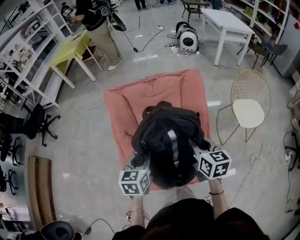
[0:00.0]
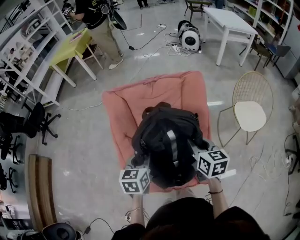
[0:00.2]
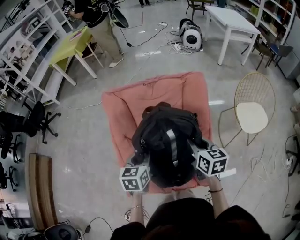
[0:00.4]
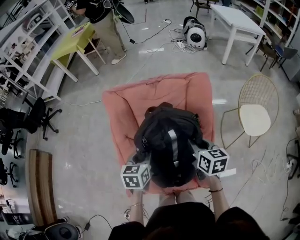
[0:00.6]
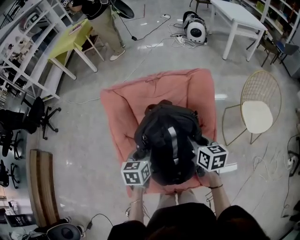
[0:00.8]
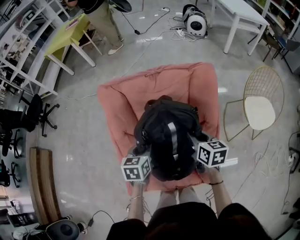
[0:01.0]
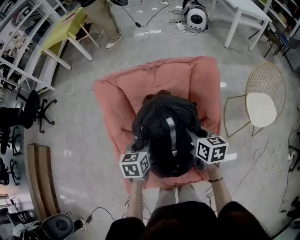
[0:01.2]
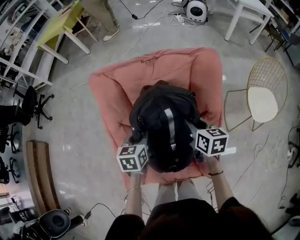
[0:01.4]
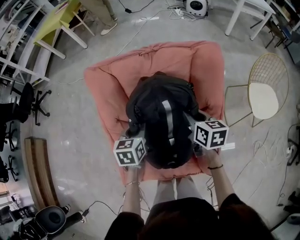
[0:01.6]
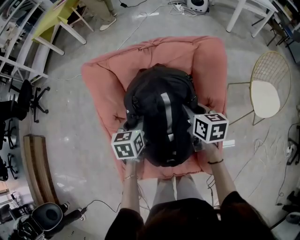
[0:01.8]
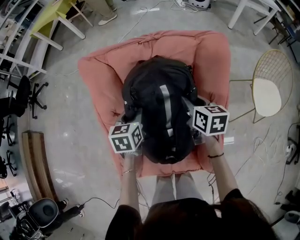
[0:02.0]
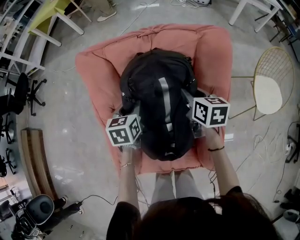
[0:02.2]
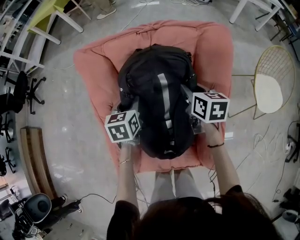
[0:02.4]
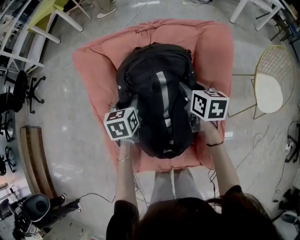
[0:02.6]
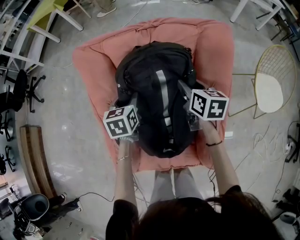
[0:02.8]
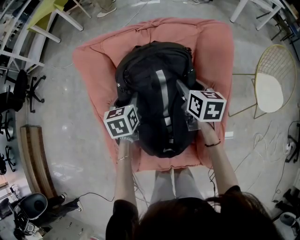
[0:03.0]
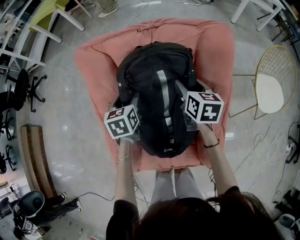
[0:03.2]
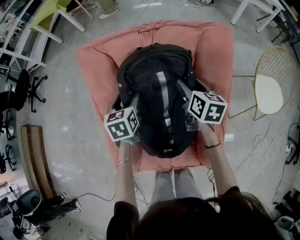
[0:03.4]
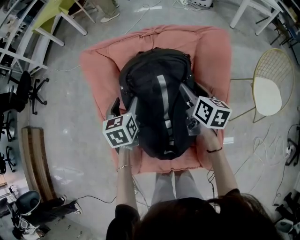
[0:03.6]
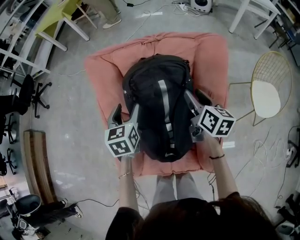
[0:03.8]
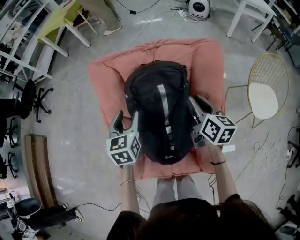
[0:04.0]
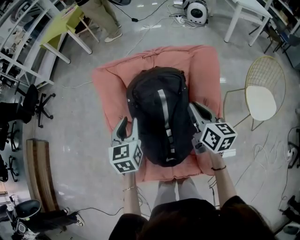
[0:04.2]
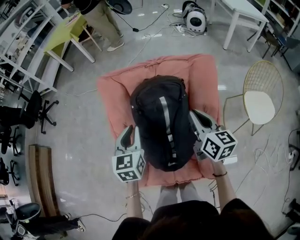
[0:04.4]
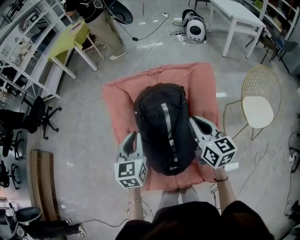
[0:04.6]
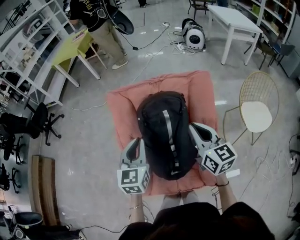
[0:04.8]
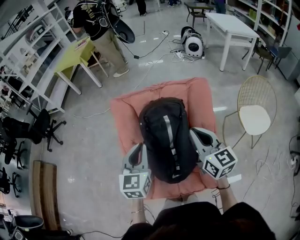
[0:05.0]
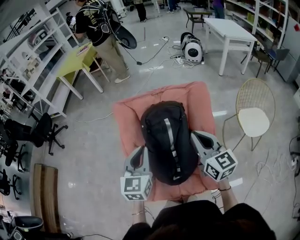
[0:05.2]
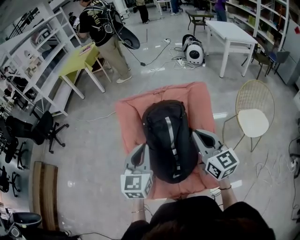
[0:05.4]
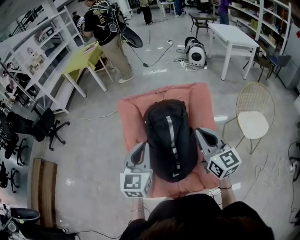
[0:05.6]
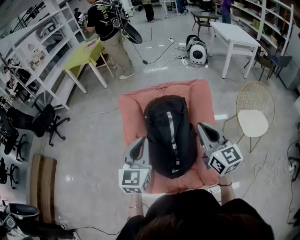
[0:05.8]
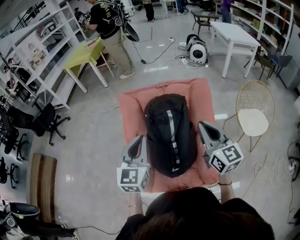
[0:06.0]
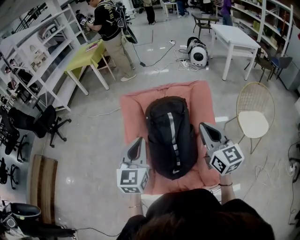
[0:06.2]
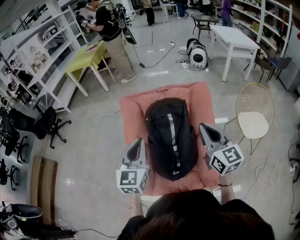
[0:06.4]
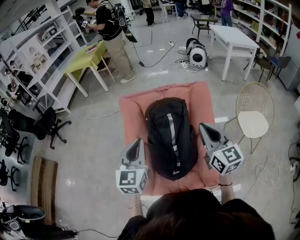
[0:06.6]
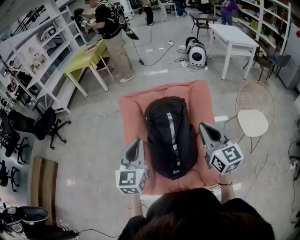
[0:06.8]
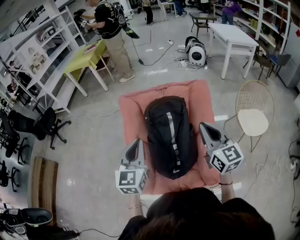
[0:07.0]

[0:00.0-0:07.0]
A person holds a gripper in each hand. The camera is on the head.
0:00.0 to 0:01.4: The two grippers go some 20 cm forward and downward.
0:01.4 to 0:02.8: Both grippers travel together forward, roughly 10 cm.
0:02.8 to 0:04.2: Both grippers move upward and backward, about 15 cm. The right gripper opens and closes again; the left gripper opens, then closes again.
0:04.2 to 0:05.6: The two grippers go about 20 cm upward and backward. The left gripper swivels approximately 20 degrees, and closes its fingers, while the right gripper swivels approximately 30 degrees.
0:05.6 to 0:07.0: The grippers stay close to where they were, moving slightly.

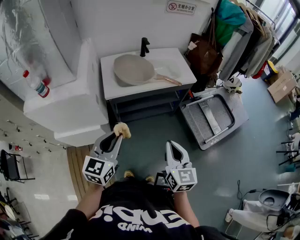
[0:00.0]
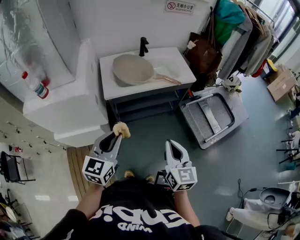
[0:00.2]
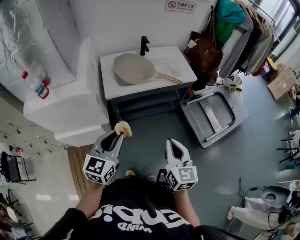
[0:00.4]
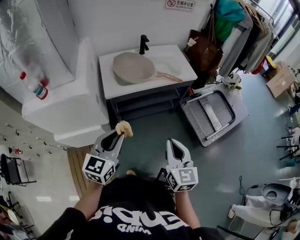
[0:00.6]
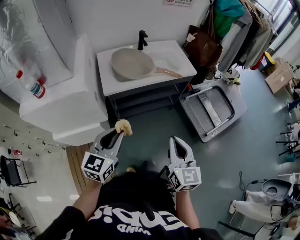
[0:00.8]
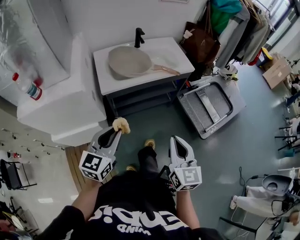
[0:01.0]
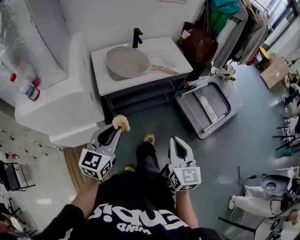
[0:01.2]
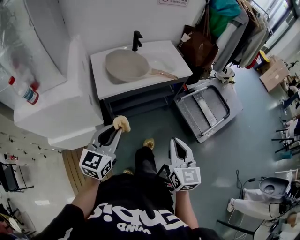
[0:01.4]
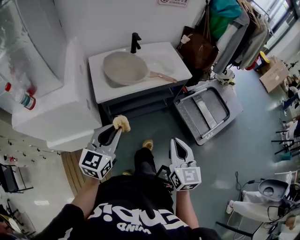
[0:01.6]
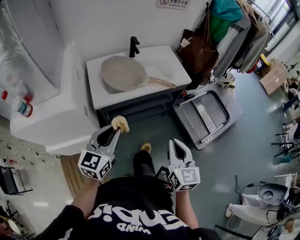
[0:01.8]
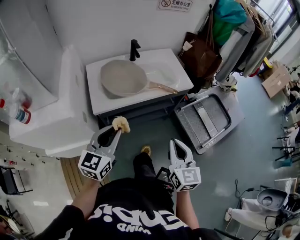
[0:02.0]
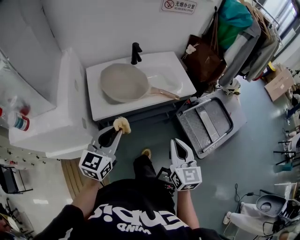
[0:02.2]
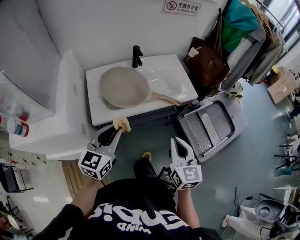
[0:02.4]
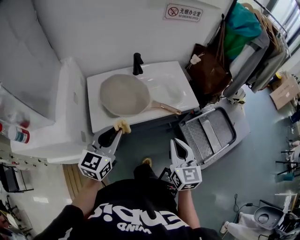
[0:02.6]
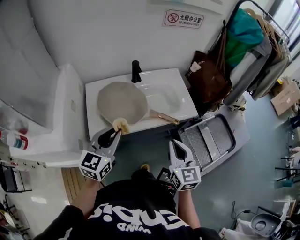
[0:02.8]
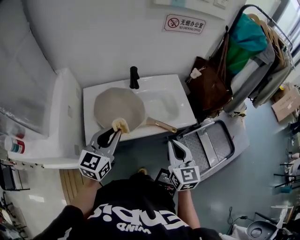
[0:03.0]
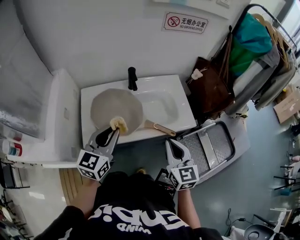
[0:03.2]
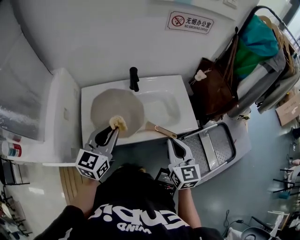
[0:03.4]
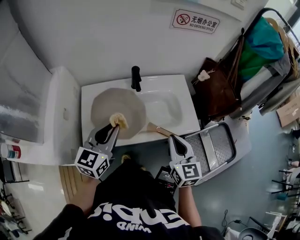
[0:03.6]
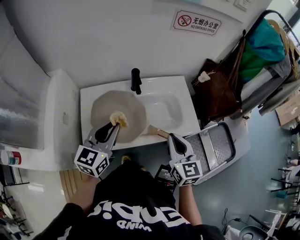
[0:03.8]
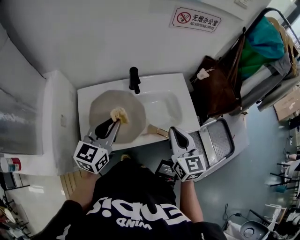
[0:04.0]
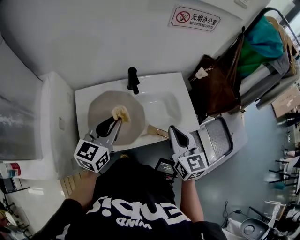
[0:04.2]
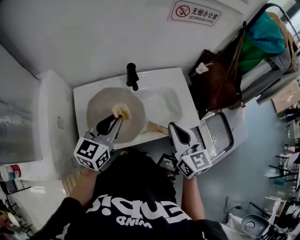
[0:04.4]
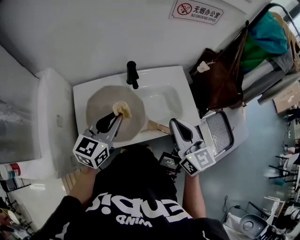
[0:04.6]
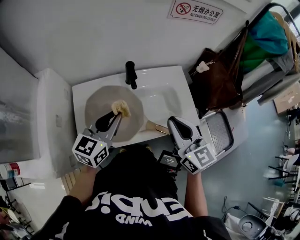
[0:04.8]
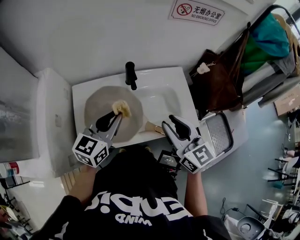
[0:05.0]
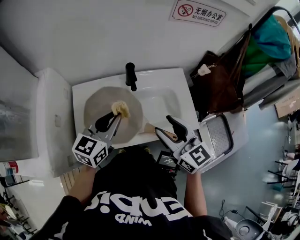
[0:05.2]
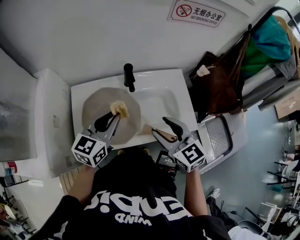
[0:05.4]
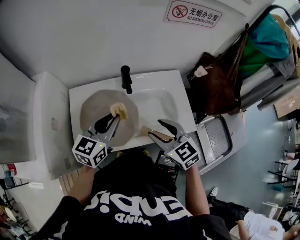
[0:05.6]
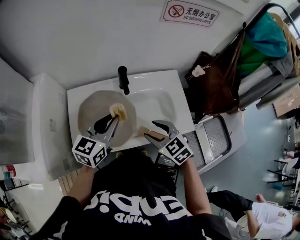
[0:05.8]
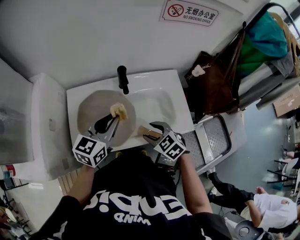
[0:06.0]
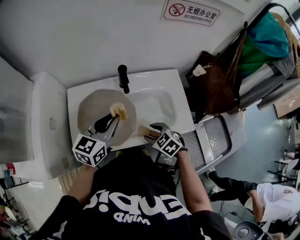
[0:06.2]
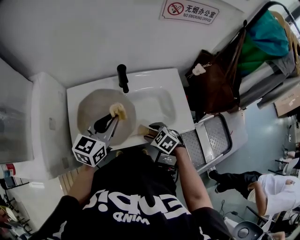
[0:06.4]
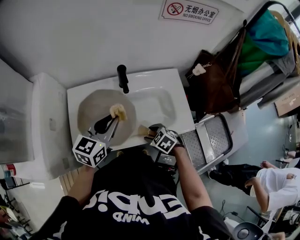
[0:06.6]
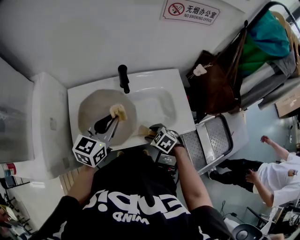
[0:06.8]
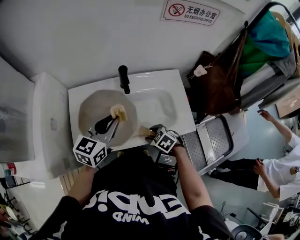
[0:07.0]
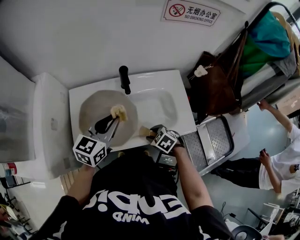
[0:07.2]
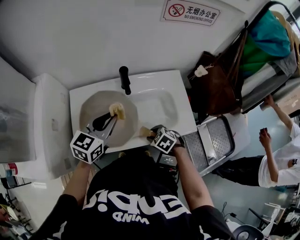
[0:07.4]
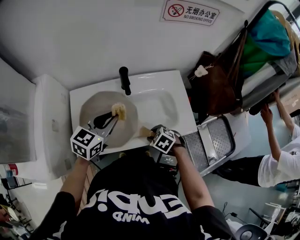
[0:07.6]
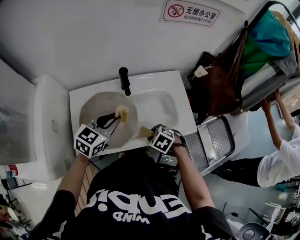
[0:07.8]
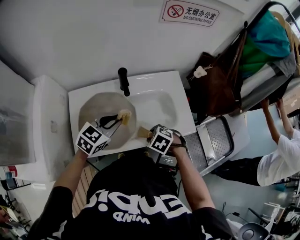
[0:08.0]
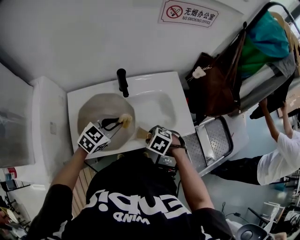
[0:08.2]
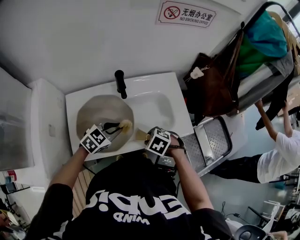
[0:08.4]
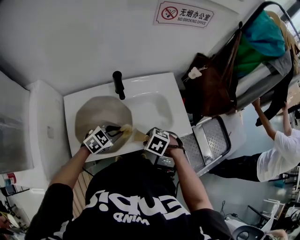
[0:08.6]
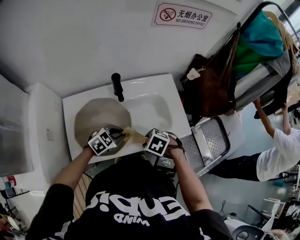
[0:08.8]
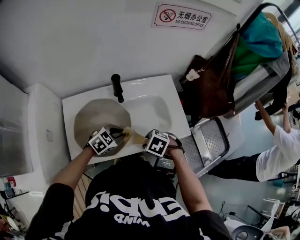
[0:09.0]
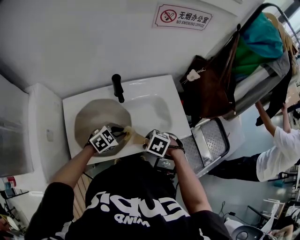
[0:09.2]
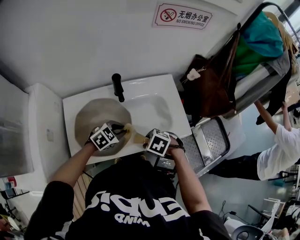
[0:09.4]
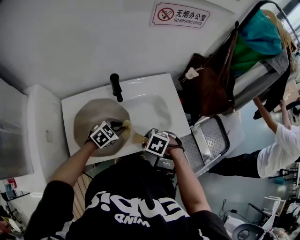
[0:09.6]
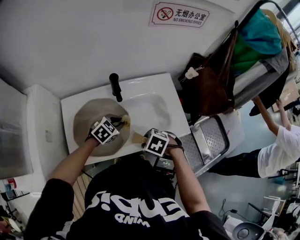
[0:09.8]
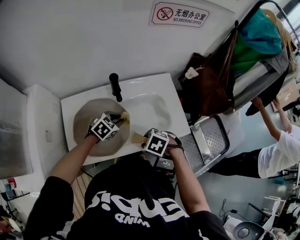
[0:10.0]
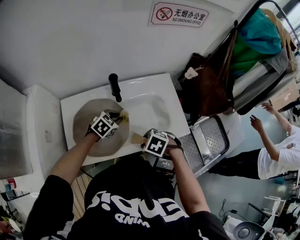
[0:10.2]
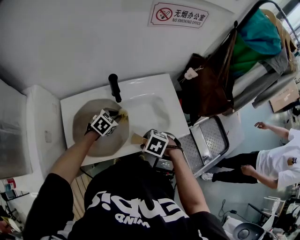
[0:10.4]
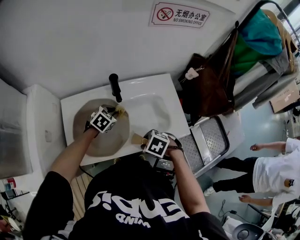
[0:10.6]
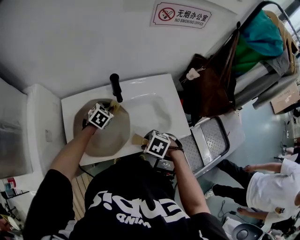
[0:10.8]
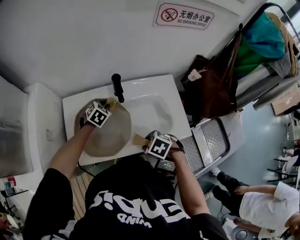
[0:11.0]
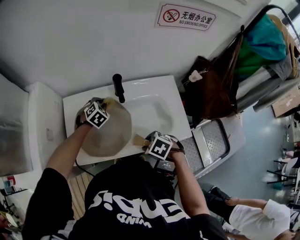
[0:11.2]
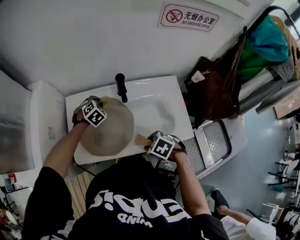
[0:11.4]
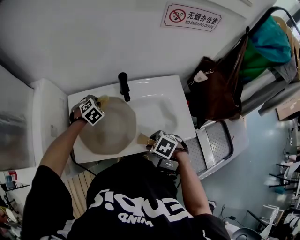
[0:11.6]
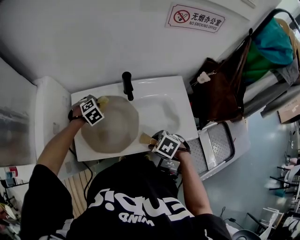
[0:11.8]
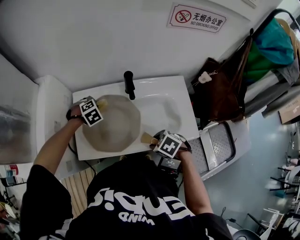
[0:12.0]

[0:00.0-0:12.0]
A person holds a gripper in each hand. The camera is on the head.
0:00.0 to 0:01.6: The left gripper goes approximately 5 cm forward.
0:01.6 to 0:03.0: The grippers both shift forward by approximately 30 cm.
0:03.0 to 0:04.4: Both grippers move forward, roughly 15 cm.
0:04.4 to 0:06.0: The left gripper ends up about 5 cm from where it was; the right gripper goes approximately 20 cm downward, tips its fingers downward by approximately 40 degrees, and opens.
0:06.0 to 0:07.6: The right gripper travels downward by about 10 cm, and swivels roughly 20 degrees.
0:07.6 to 0:09.0: The left gripper is displaced downward by roughly 15 cm, and turns by approximately 40 degrees.
0:09.0 to 0:10.4: The left gripper ends up roughly 10 cm from where it was.
0:10.4 to 0:12.0: The left gripper changes place by roughly 20 cm, and changes its angle by roughly 30 degrees.

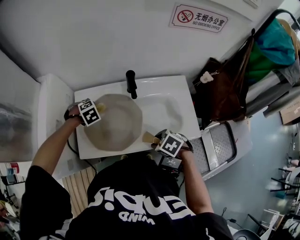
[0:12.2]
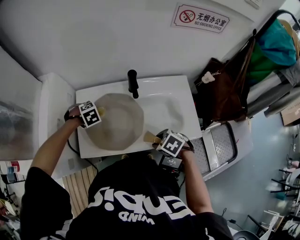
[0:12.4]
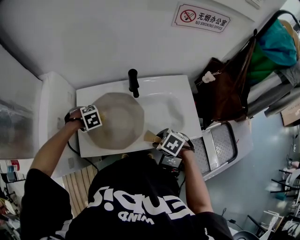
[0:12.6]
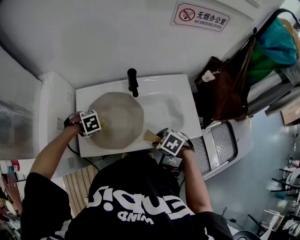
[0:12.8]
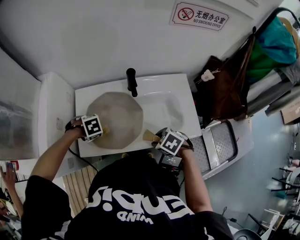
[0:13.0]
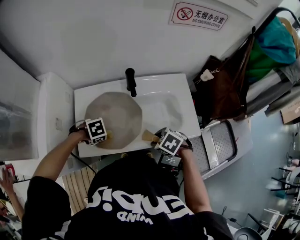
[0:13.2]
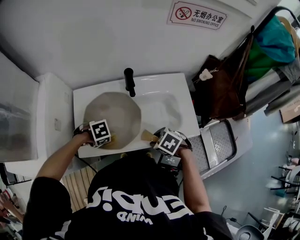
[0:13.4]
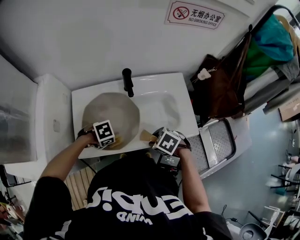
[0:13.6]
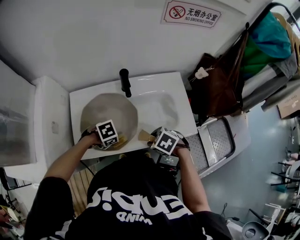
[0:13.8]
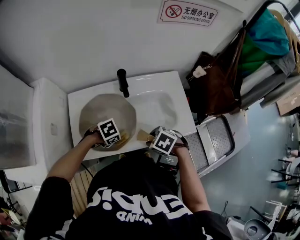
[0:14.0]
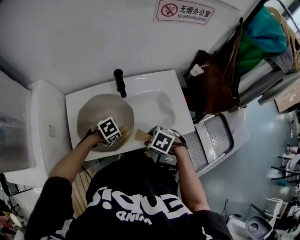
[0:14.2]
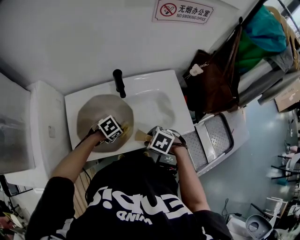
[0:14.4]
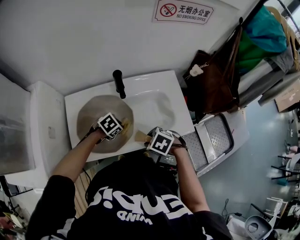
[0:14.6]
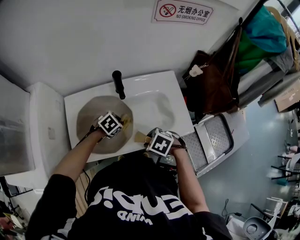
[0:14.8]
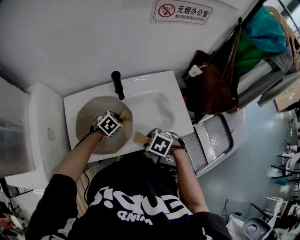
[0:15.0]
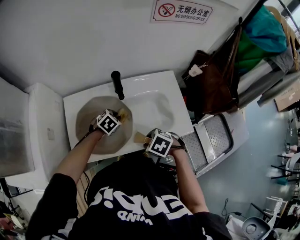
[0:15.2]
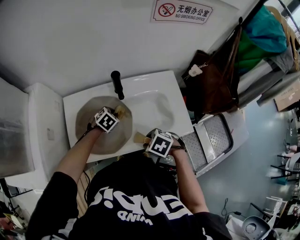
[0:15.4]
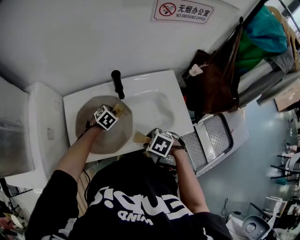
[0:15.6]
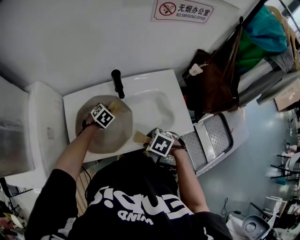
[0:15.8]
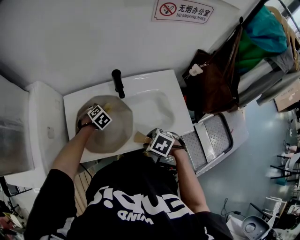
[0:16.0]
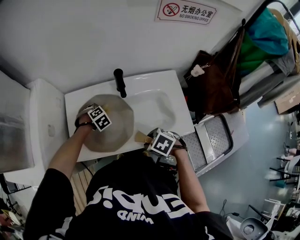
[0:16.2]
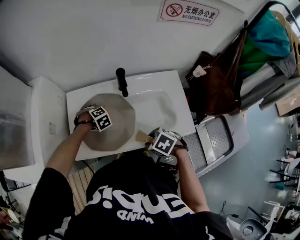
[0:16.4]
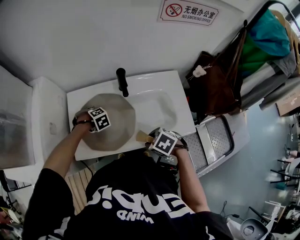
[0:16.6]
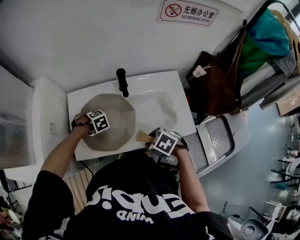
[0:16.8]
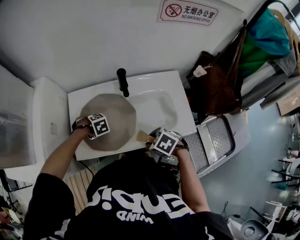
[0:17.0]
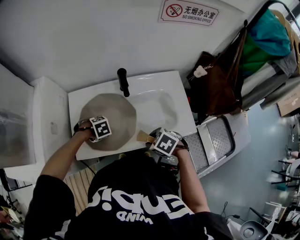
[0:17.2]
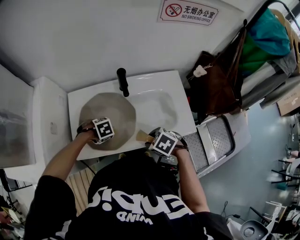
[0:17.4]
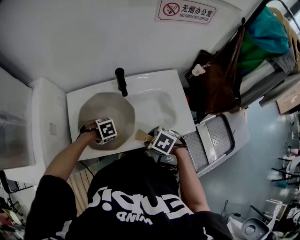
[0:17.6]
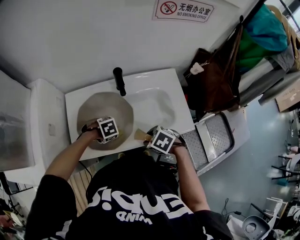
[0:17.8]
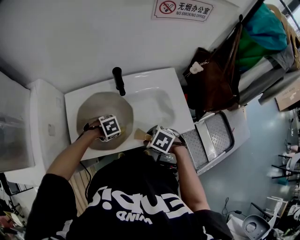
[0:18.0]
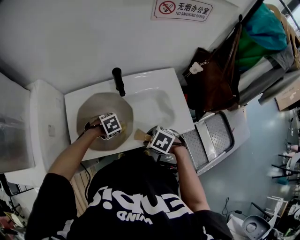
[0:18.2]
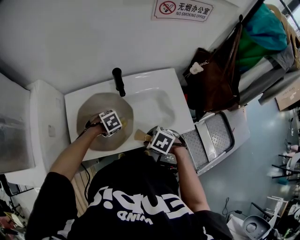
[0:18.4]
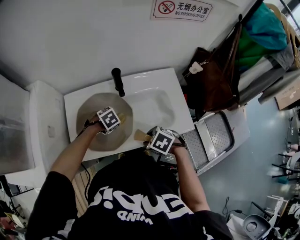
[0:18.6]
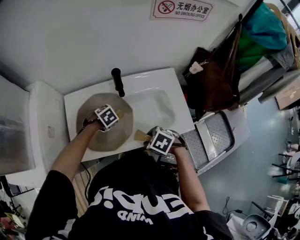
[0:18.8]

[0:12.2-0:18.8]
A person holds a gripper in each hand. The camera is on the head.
0:12.2 to 0:13.8: The left gripper shifts by approximately 20 cm, and changes its angle by approximately 30 degrees.
0:13.8 to 0:15.4: The left gripper moves some 15 cm, and swivels about 40 degrees.
0:15.4 to 0:17.2: The left gripper shifts by approximately 15 cm, and swivels some 40 degrees.
0:17.2 to 0:18.8: The left gripper shifts by approximately 10 cm.
